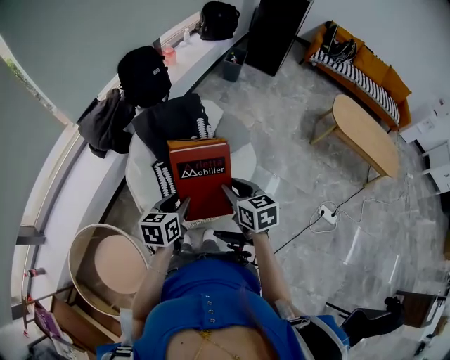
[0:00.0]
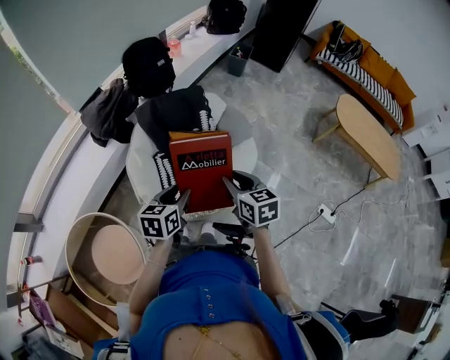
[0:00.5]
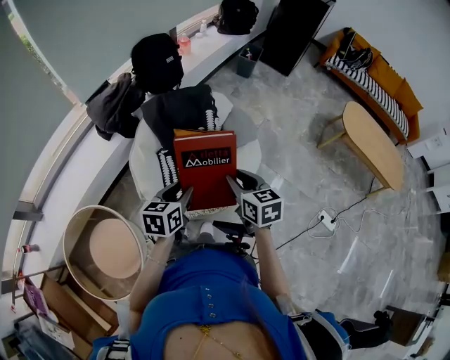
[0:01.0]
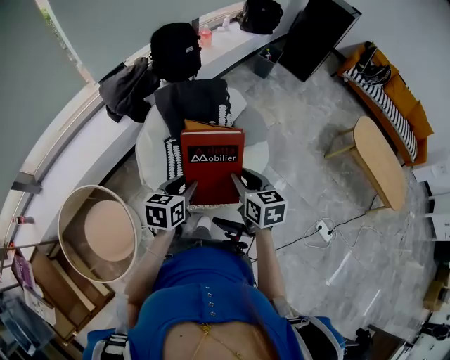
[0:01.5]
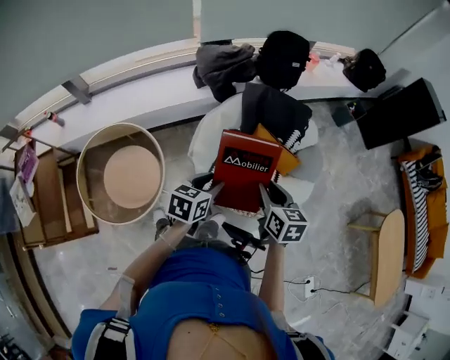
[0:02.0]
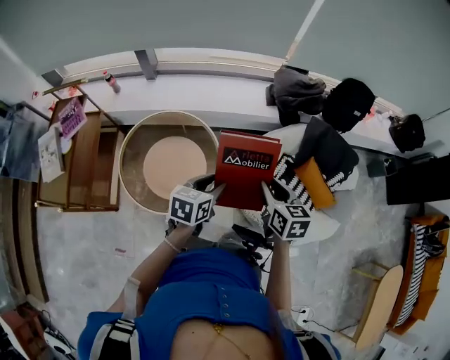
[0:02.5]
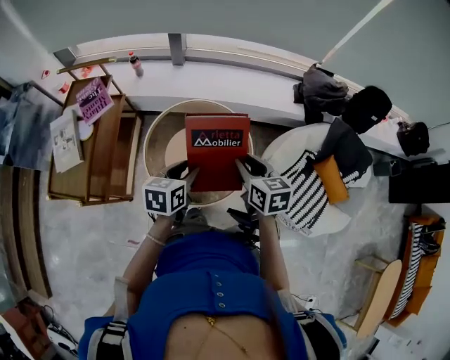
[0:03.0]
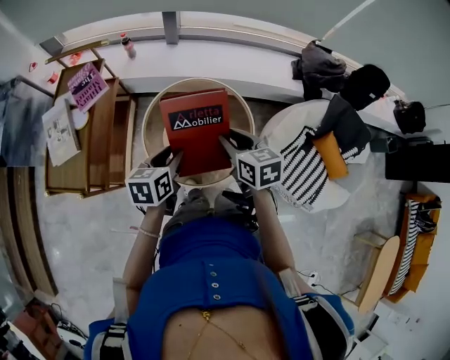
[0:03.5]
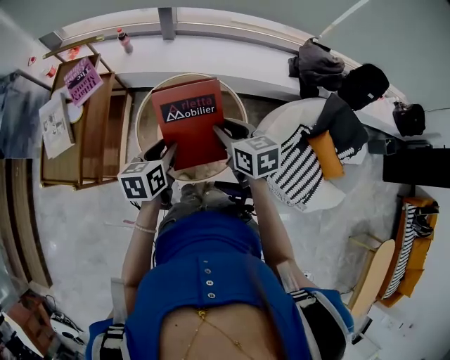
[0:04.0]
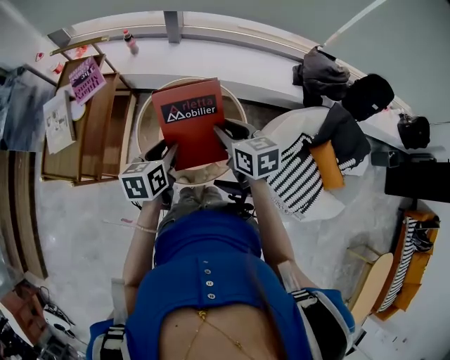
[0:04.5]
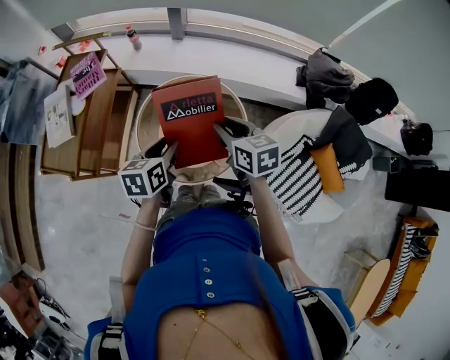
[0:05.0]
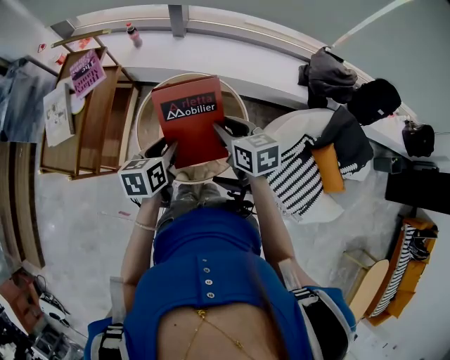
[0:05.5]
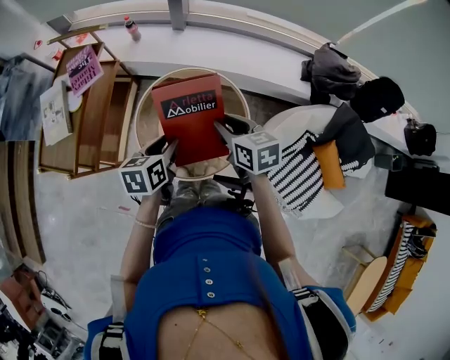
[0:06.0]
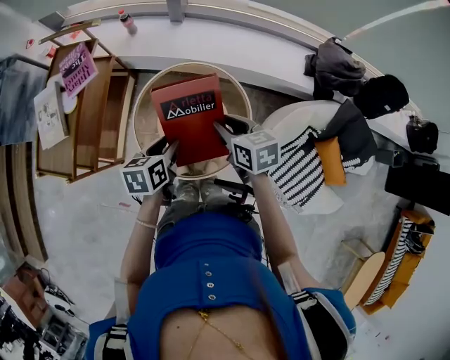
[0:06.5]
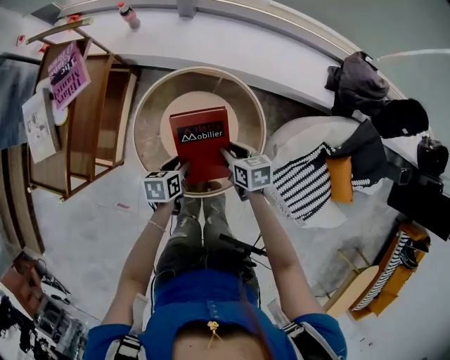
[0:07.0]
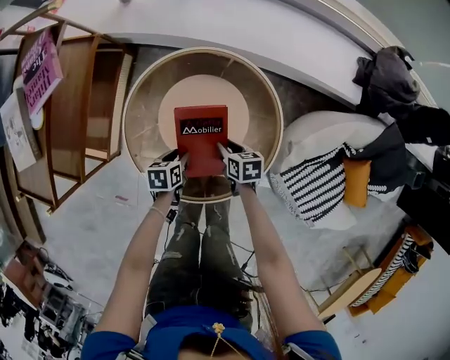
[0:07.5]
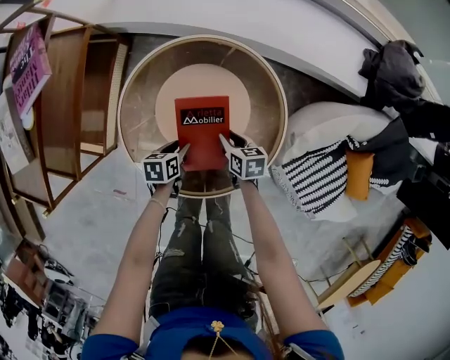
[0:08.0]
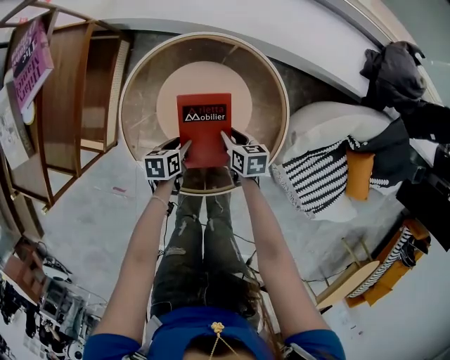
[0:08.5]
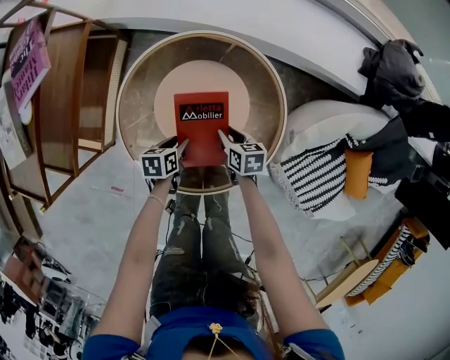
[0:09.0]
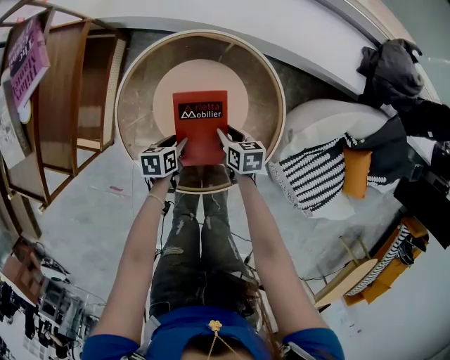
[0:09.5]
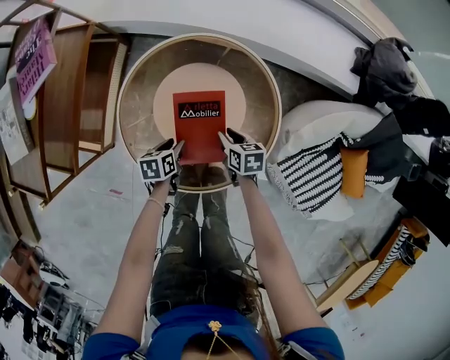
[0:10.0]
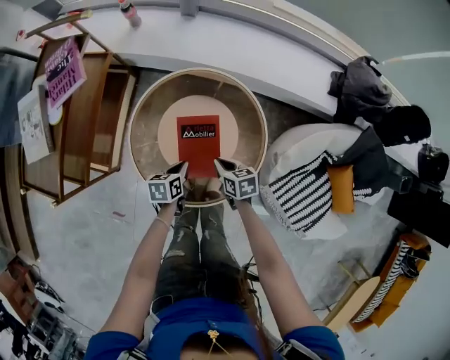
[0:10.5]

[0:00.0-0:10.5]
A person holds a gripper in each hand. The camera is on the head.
0:00.0 to 0:02.0: The two grippers go approximately 10 cm to the left. The left gripper swivels roughly 20 degrees. Meanwhile the right gripper turns by about 20 degrees.
0:02.0 to 0:04.0: Both grippers are carried about 60 cm. The right gripper swivels approximately 40 degrees. The left gripper rotates some 40 degrees.
0:04.0 to 0:06.5: The right gripper is displaced forward and downward by about 10 cm. Meanwhile the left gripper heads downward and forward, covering about 10 cm.
0:06.5 to 0:08.5: The two grippers go some 40 cm downward. The left gripper rotates some 20 degrees. The right gripper rotates approximately 20 degrees.
0:08.5 to 0:10.5: Both grippers move upward, approximately 10 cm. The left gripper closes up, while the right gripper closes up.

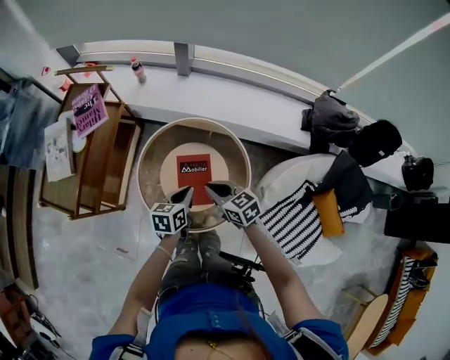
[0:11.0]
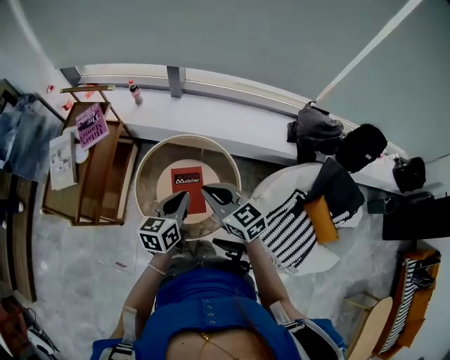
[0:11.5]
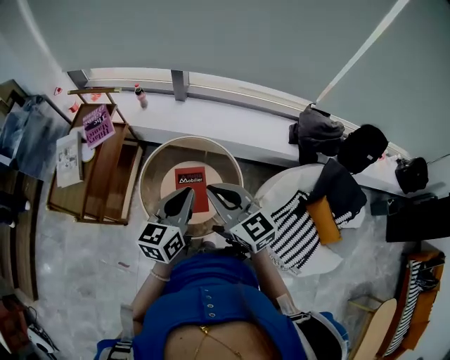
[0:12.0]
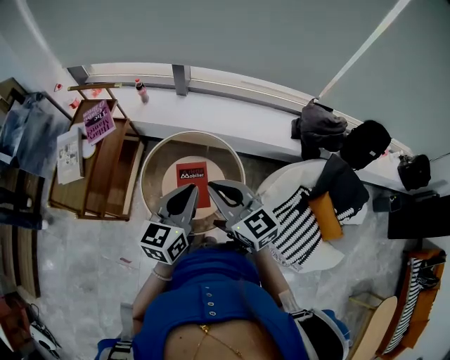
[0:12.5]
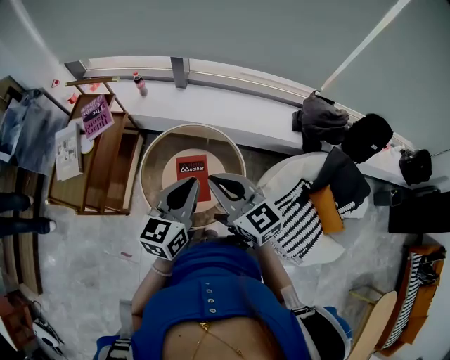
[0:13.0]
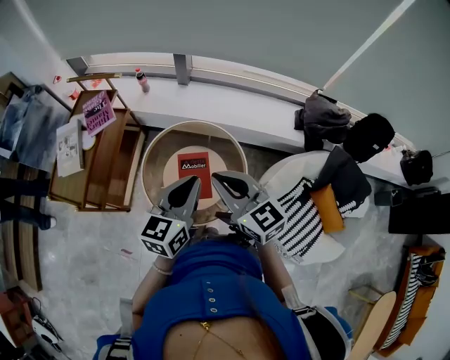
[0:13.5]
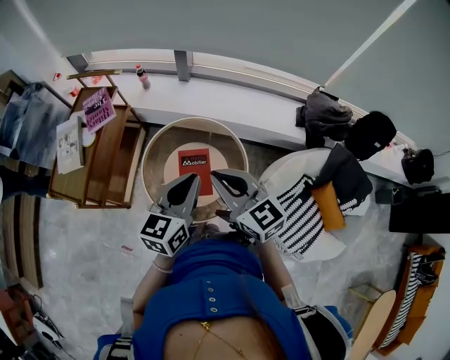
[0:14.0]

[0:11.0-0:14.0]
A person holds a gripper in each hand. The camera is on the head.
0:11.0 to 0:12.5: Both grippers travel together upward, about 25 cm. The right gripper changes its angle by roughly 30 degrees; the left gripper changes its angle by approximately 30 degrees.
0:12.5 to 0:14.0: Both grippers stay put.

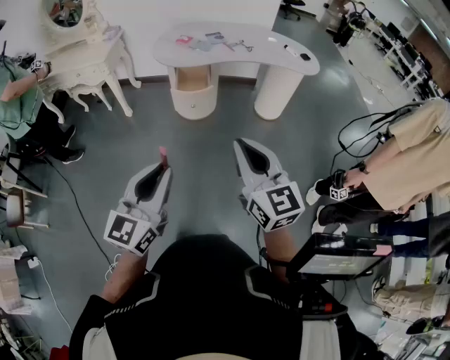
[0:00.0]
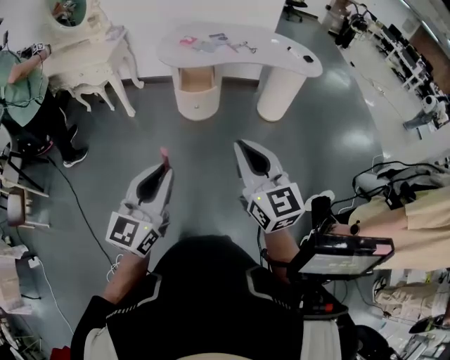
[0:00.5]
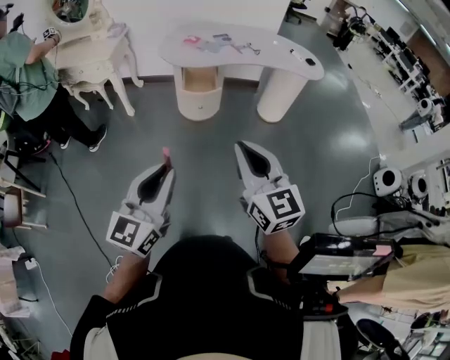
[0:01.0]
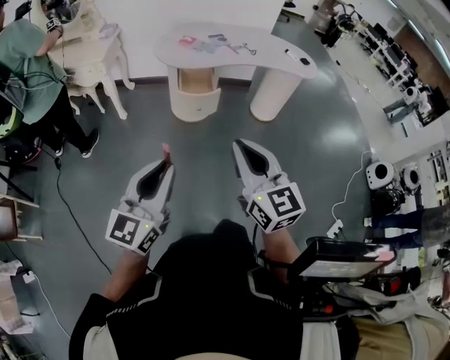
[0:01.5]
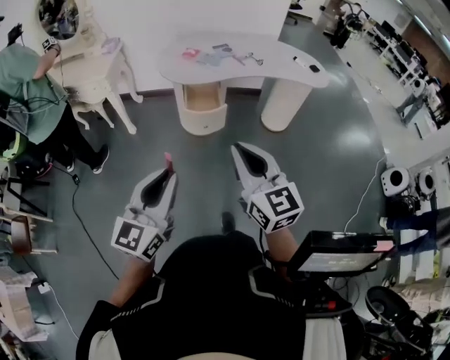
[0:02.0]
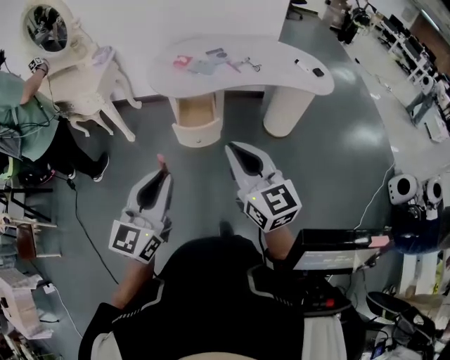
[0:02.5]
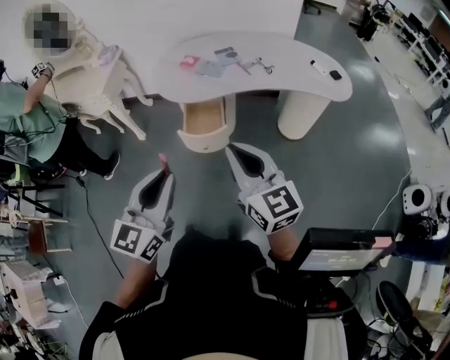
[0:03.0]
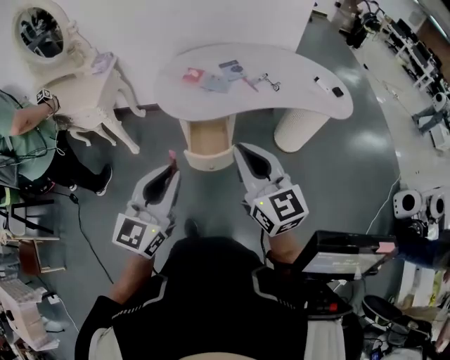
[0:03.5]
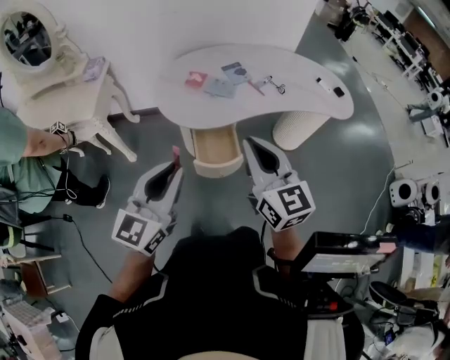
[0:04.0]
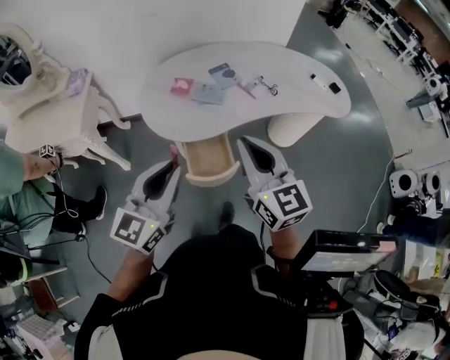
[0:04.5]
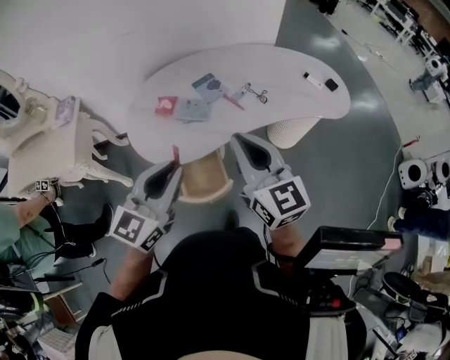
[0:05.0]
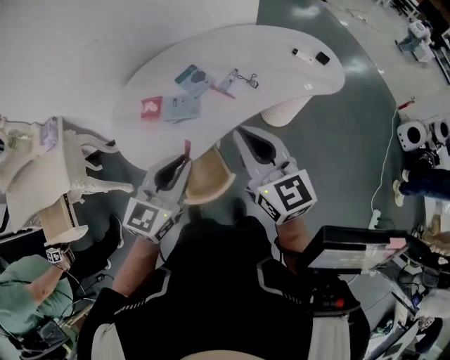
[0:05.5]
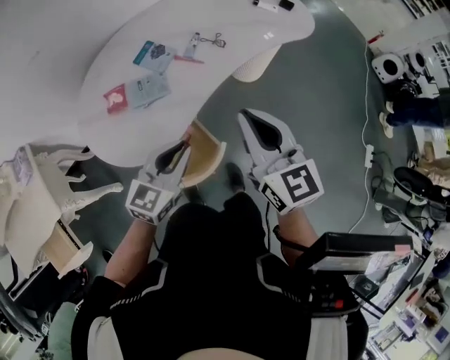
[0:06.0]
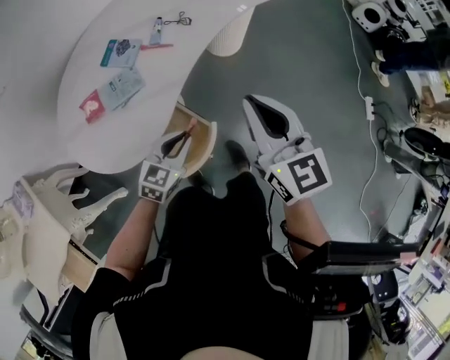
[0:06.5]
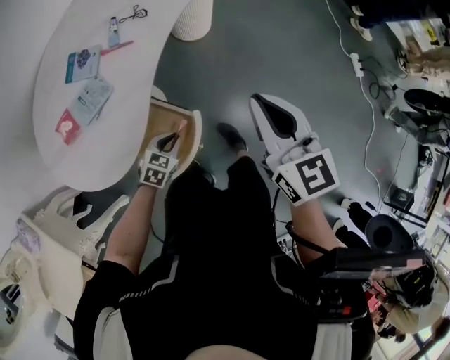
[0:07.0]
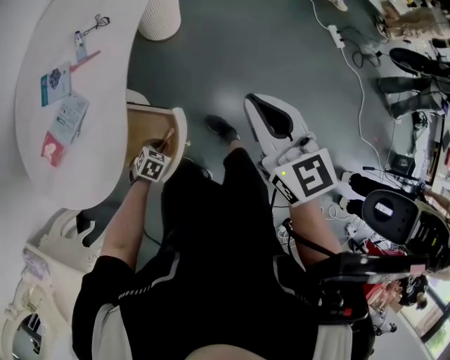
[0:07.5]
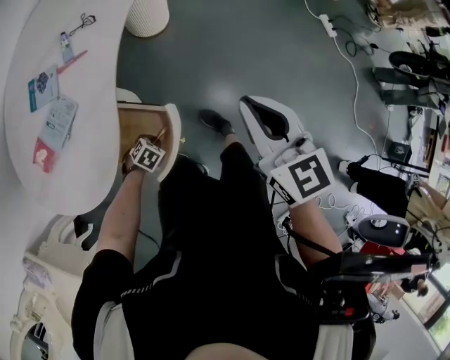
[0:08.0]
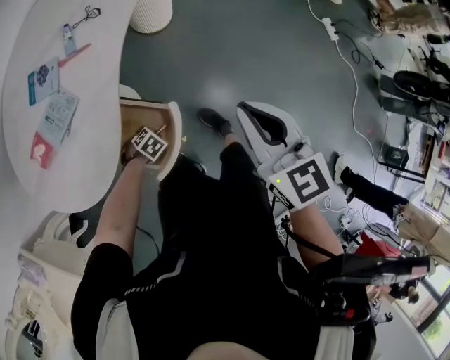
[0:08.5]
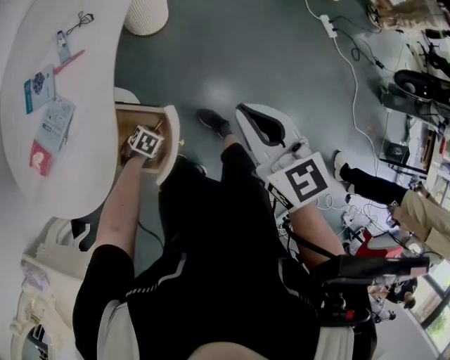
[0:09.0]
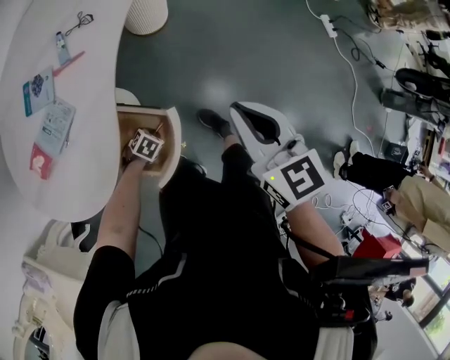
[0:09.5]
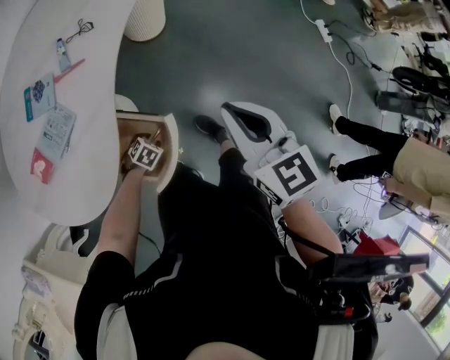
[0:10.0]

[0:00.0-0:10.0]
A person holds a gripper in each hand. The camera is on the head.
0:00.0 to 0:02.0: Both grippers travel together forward and to the left, approximately 15 cm.
0:02.0 to 0:04.0: The grippers both shift forward by about 35 cm.
0:04.0 to 0:06.0: The right gripper shifts by approximately 20 cm, and swivels roughly 30 degrees. The left gripper shifts by some 30 cm, and turns by about 40 degrees.
0:06.0 to 0:08.0: The right gripper shifts by roughly 20 cm, and turns by about 30 degrees; the left gripper goes roughly 40 cm downward, and points its fingers about 60 degrees further downward.
0:08.0 to 0:10.0: The left gripper opens its fingers.

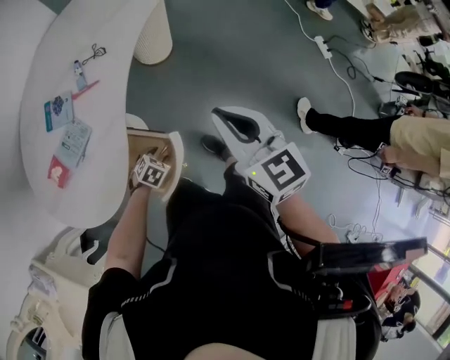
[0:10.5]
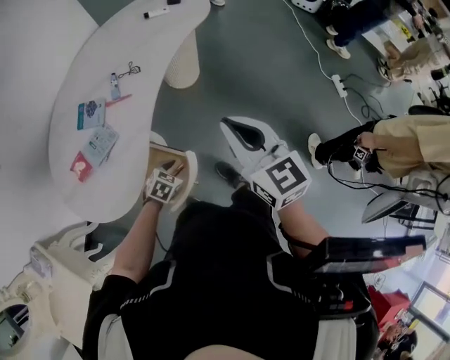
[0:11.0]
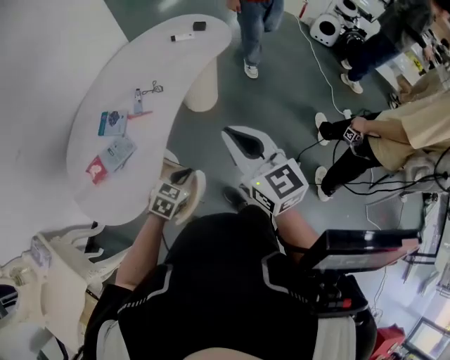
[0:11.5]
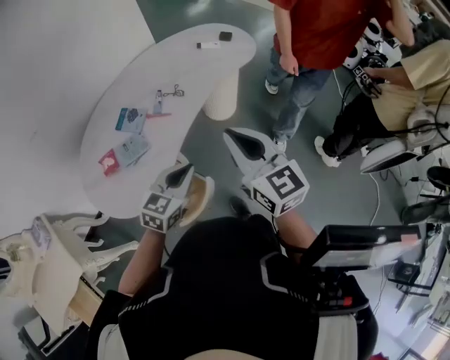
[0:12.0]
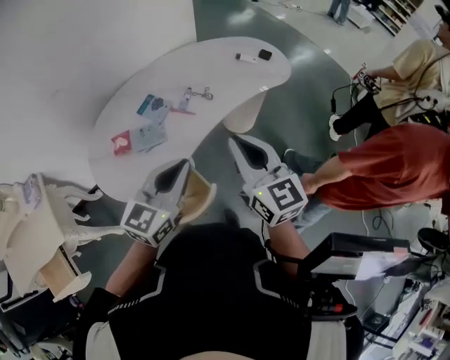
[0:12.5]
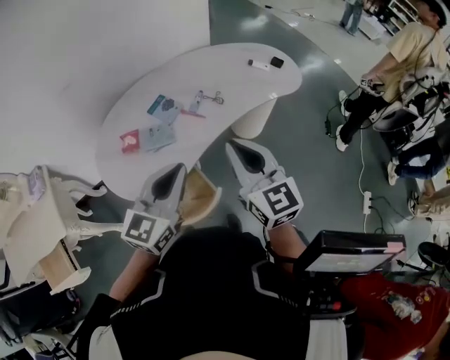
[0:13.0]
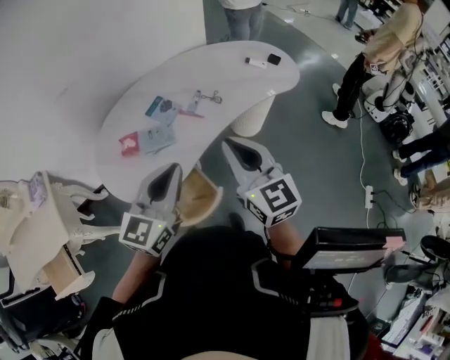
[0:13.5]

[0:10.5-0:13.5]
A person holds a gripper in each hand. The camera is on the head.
0:10.5 to 0:12.0: The right gripper shifts some 10 cm upward, and swivels approximately 20 degrees; the left gripper goes roughly 35 cm upward, angles its fingers upward, by about 40 degrees, and closes.
0:12.0 to 0:13.5: The left gripper shifts some 15 cm upward and to the left, and rotates approximately 30 degrees, while the right gripper is displaced to the left by roughly 10 cm.
